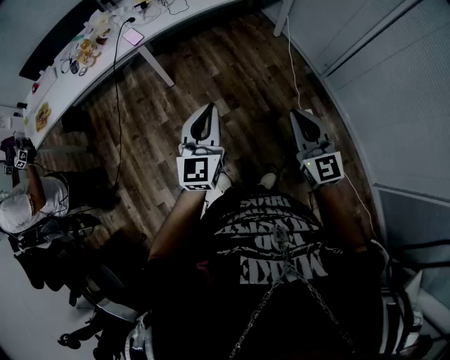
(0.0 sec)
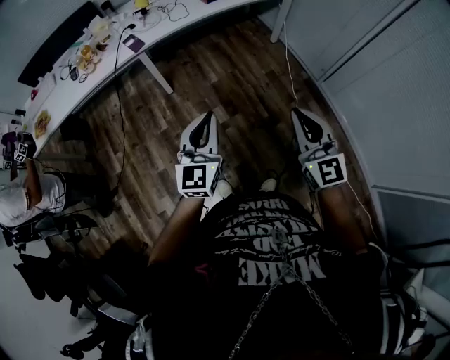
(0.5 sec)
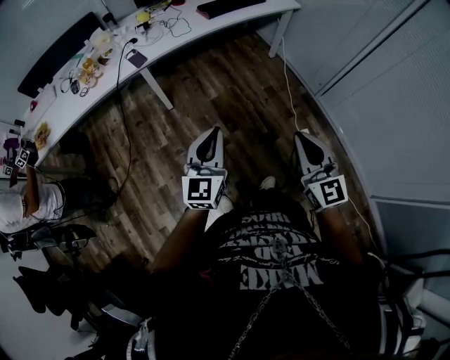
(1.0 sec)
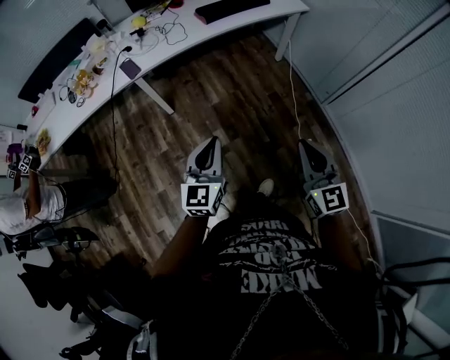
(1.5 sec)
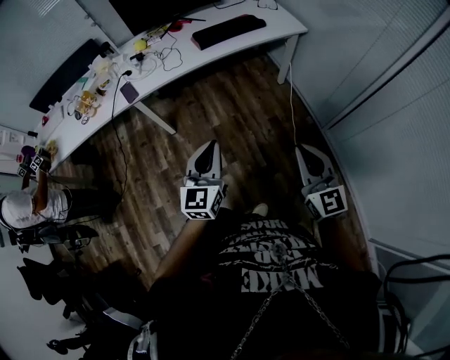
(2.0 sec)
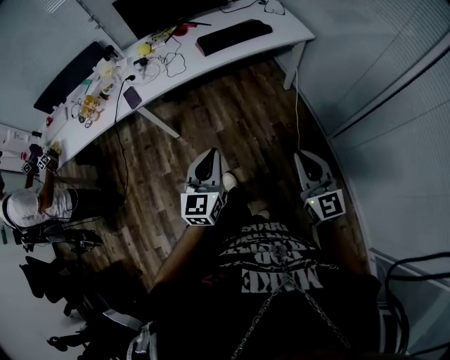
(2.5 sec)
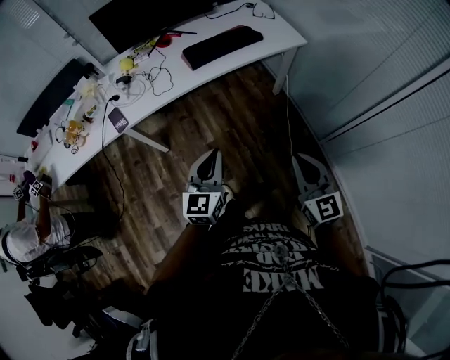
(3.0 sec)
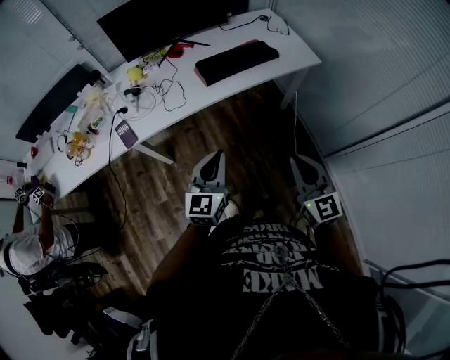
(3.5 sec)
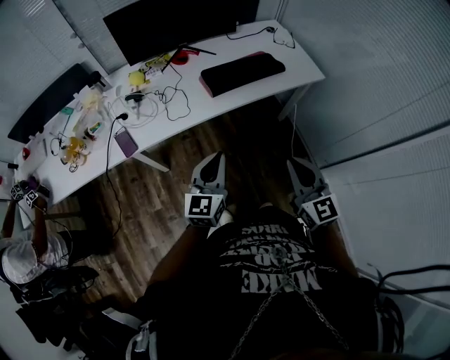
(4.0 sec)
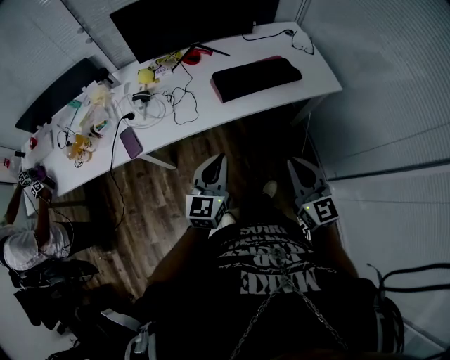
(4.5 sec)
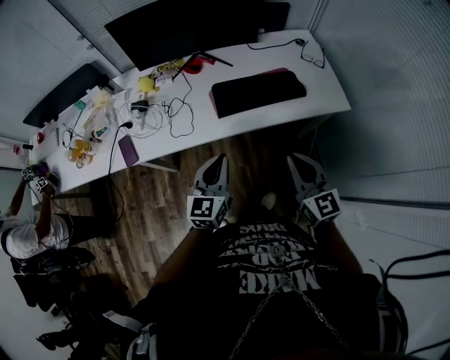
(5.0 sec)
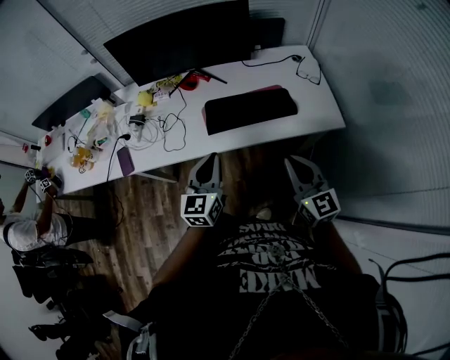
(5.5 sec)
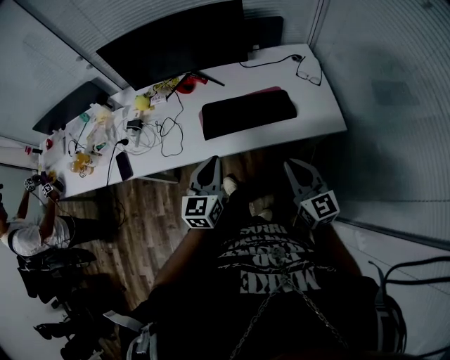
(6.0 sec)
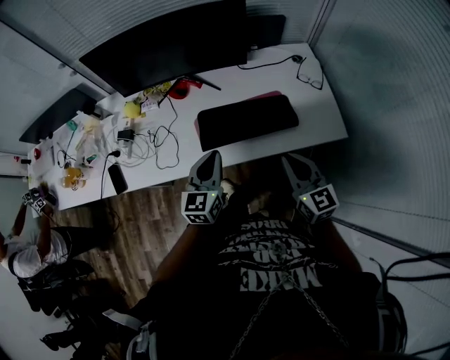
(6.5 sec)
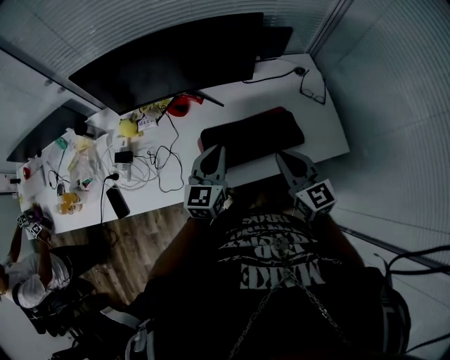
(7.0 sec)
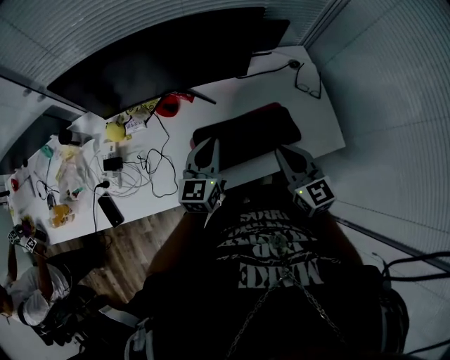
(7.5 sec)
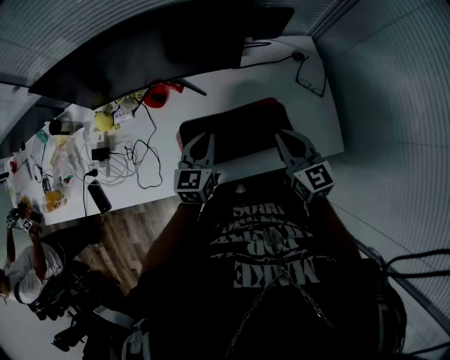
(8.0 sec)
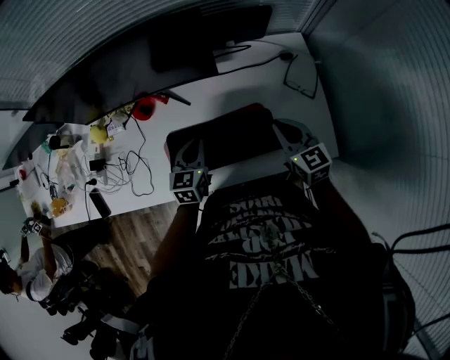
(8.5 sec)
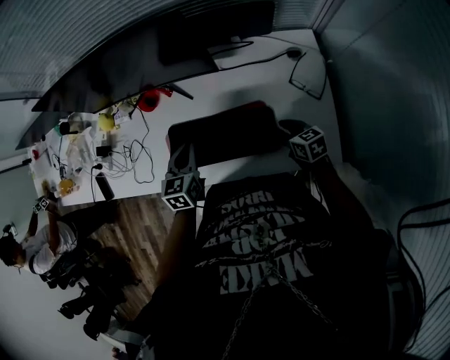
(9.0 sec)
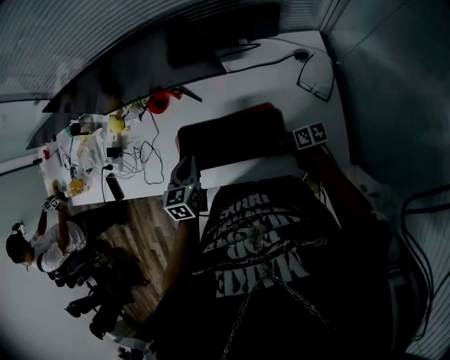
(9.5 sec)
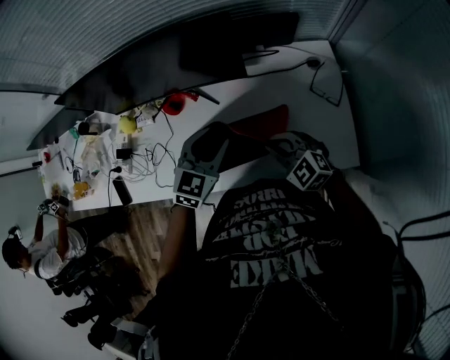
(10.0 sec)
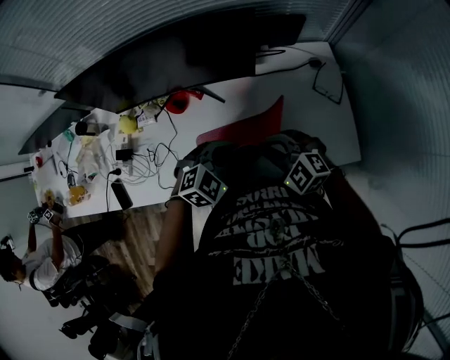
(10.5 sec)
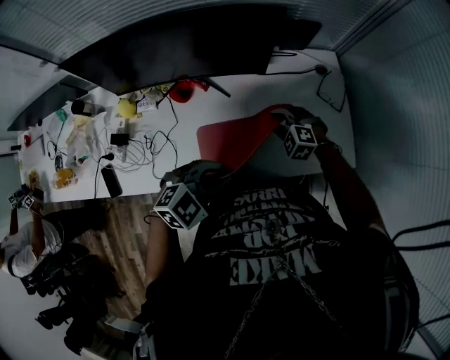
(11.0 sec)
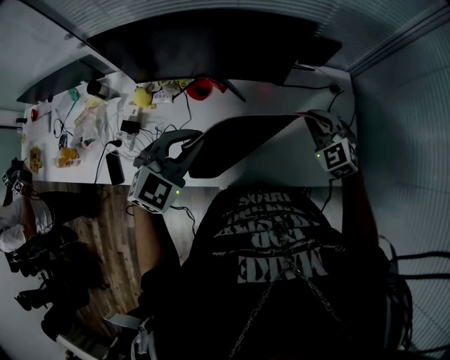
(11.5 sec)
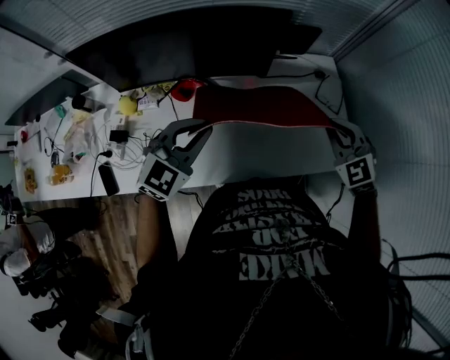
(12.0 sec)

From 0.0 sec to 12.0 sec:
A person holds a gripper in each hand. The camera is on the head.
From 0.0 sec to 2.0 sec: The grippers both shift forward and to the right by approximately 25 cm.
From 2.0 sec to 4.0 sec: The two grippers go some 30 cm forward.
From 4.0 sec to 6.0 sec: Both grippers move forward and to the right, some 30 cm.
From 6.0 sec to 8.0 sec: The grippers both shift forward by about 30 cm.
From 8.0 sec to 10.0 sec: The left gripper heads upward, covering roughly 10 cm, swivels roughly 30 degrees, and opens. The right gripper reaches roughly 20 cm downward, then returns, changes its angle by some 50 degrees, and opens and closes again.
From 10.0 sec to 12.0 sec: The right gripper travels upward and to the right by roughly 15 cm, rotates roughly 30 degrees, and opens, then closes again. Meanwhile the left gripper shifts some 15 cm to the left and upward, and closes up.

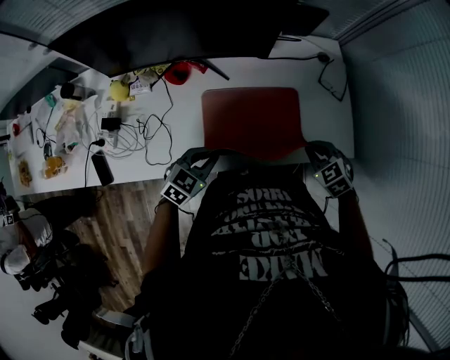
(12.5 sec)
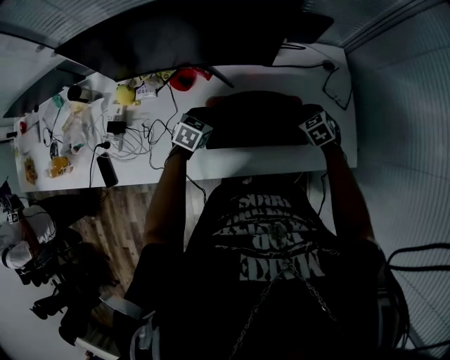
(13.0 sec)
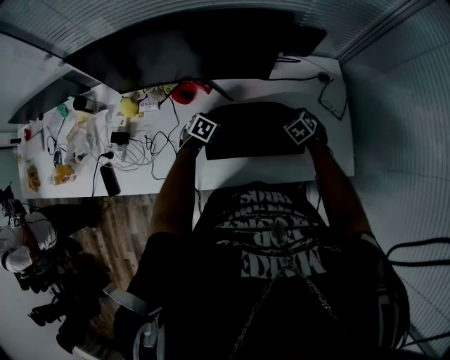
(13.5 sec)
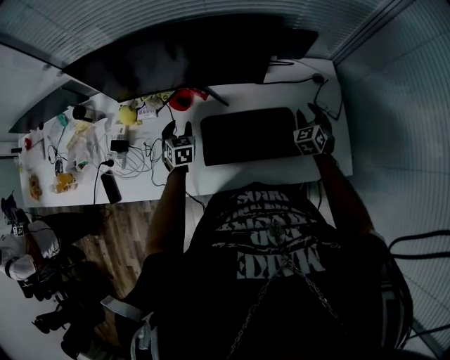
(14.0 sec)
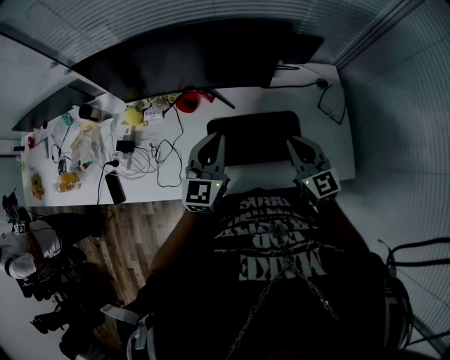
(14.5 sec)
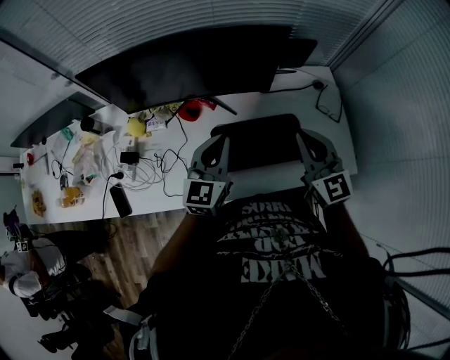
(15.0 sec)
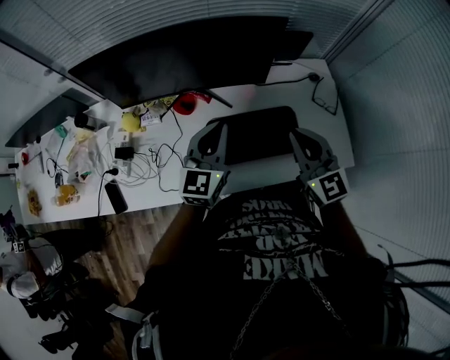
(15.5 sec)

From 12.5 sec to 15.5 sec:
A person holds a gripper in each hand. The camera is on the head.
From 12.5 sec to 14.0 sec: The left gripper is displaced forward, to the left and downward by approximately 25 cm, changes its angle by approximately 50 degrees, and opens. The right gripper travels forward by some 20 cm, rotates roughly 30 degrees, and opens.
From 14.0 sec to 15.5 sec: The right gripper heads upward, to the left and backward, covering some 35 cm, changes its angle by about 50 degrees, and closes up. Meanwhile the left gripper goes approximately 30 cm upward and to the right, tilts its fingers some 40 degrees upward, and closes.

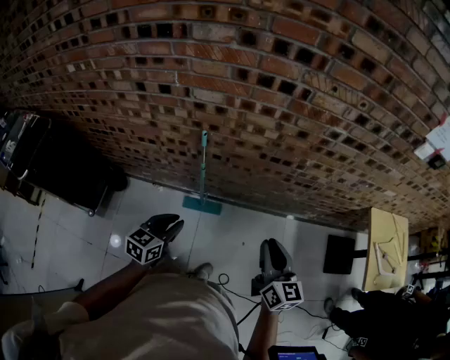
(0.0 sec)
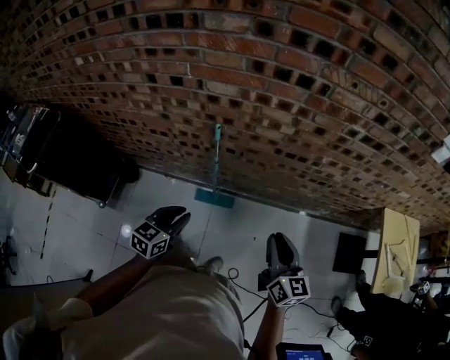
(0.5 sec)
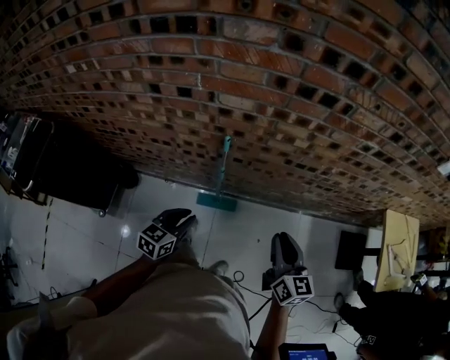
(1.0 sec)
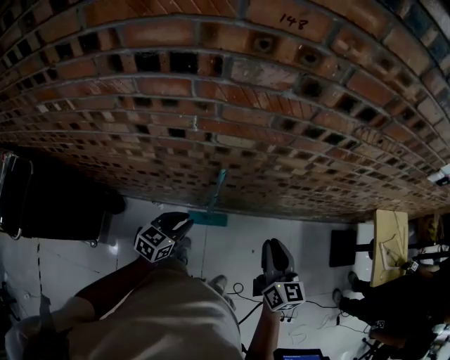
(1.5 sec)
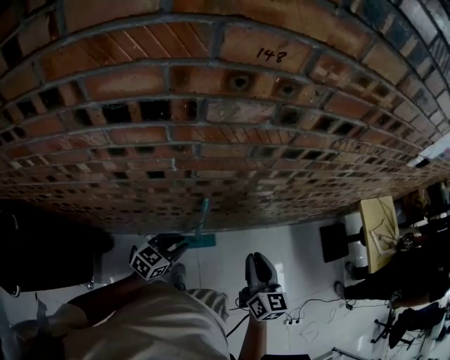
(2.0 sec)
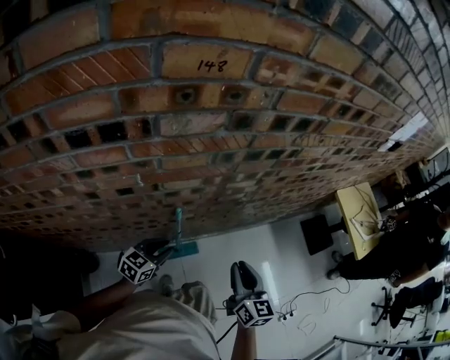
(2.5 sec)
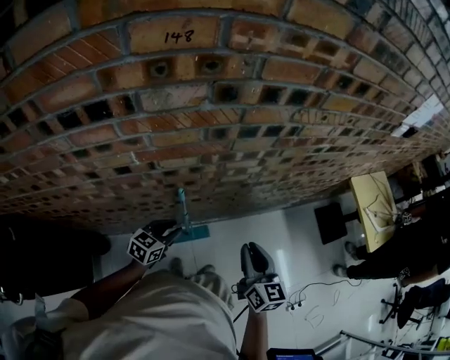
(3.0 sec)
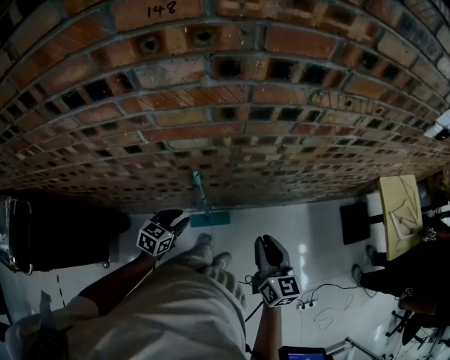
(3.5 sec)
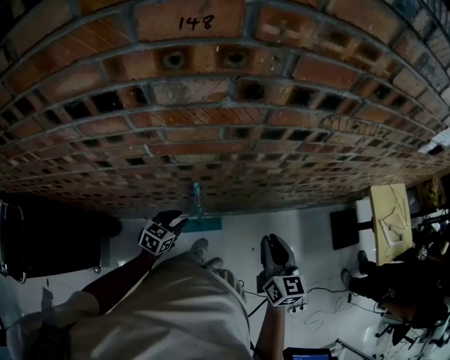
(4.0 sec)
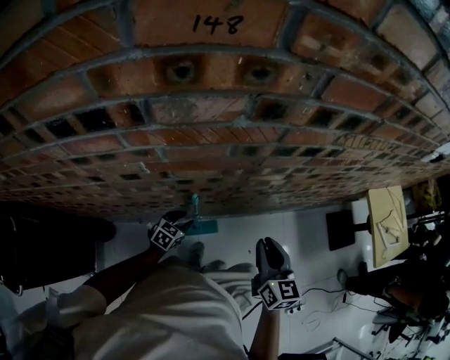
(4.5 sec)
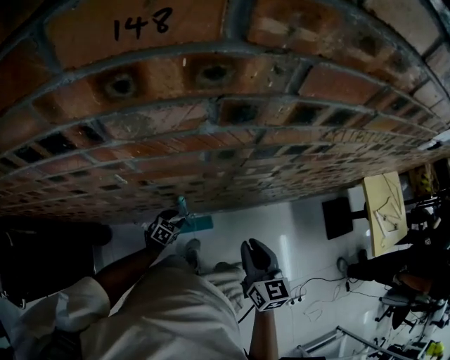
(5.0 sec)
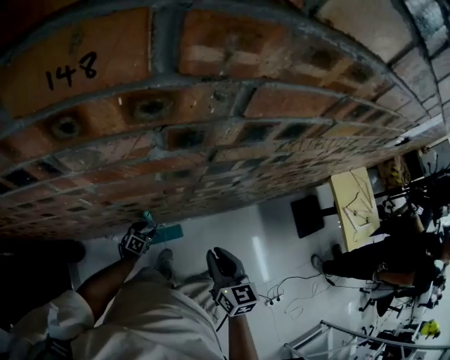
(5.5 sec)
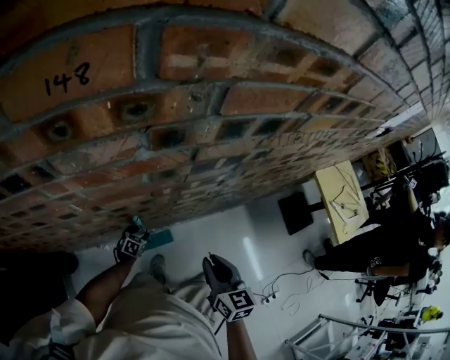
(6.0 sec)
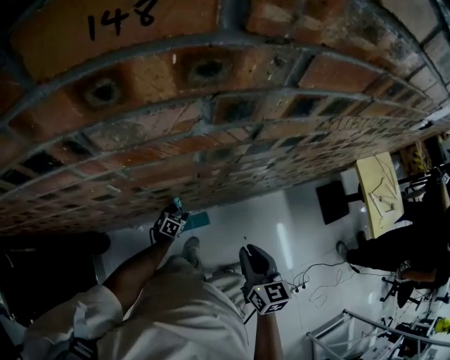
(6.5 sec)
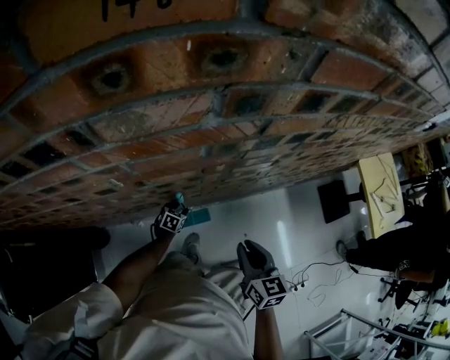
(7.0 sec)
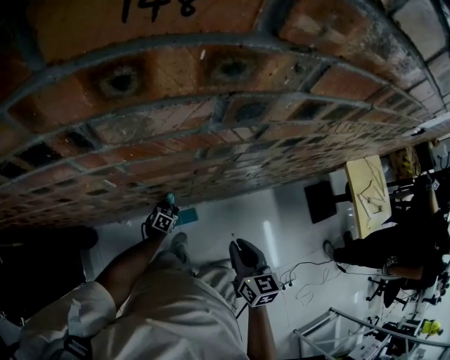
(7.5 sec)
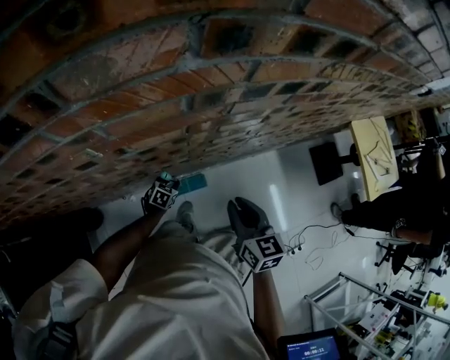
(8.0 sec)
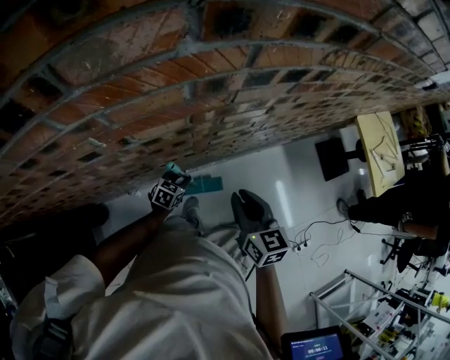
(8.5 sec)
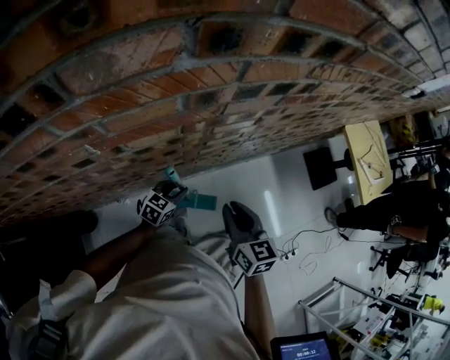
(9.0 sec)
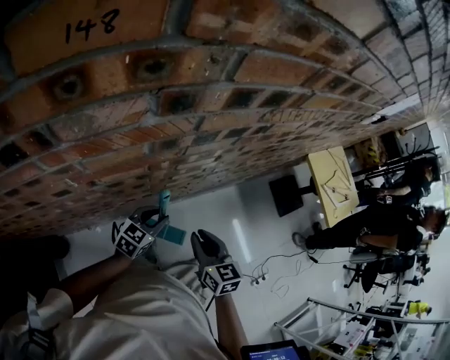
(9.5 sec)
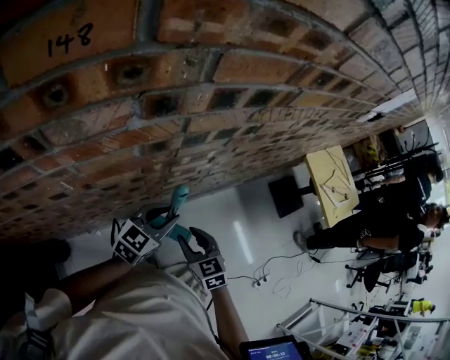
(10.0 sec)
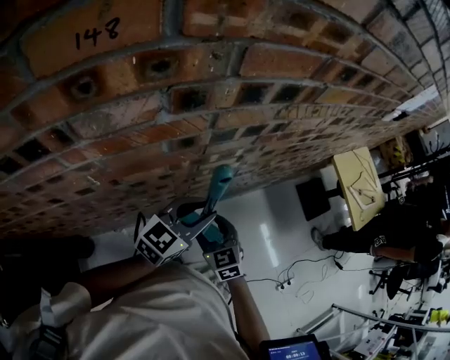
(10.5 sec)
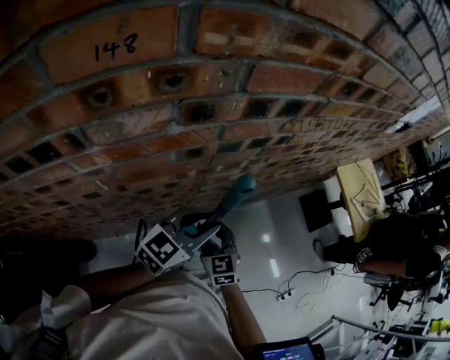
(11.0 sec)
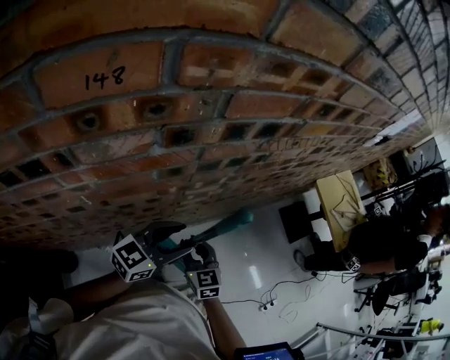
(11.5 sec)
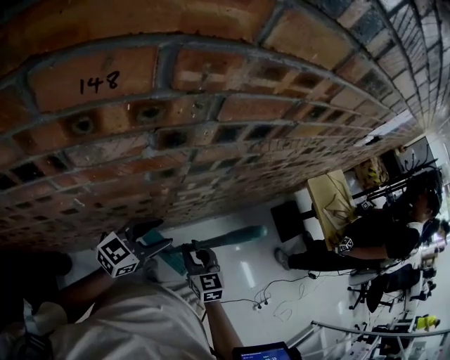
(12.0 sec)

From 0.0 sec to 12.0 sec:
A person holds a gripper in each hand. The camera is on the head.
From 0.0 sec to 2.0 sec: The left gripper ends up about 25 cm from where it was, and swivels approximately 30 degrees, while the right gripper moves roughly 25 cm.
From 2.0 sec to 4.0 sec: The left gripper is displaced downward and forward by about 10 cm; the right gripper is displaced to the right and forward by roughly 10 cm.
From 4.0 sec to 6.0 sec: The right gripper moves approximately 5 cm; the left gripper moves downward, some 25 cm.
From 6.0 sec to 8.0 sec: The grippers make only small movements.
From 8.0 sec to 10.0 sec: The left gripper moves upward, roughly 35 cm, and angles its fingers upward, by about 30 degrees.
From 10.0 sec to 12.0 sec: The left gripper moves upward, some 5 cm, and opens its fingers; the right gripper opens, then closes again.
